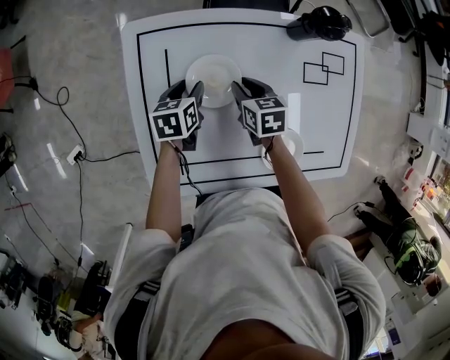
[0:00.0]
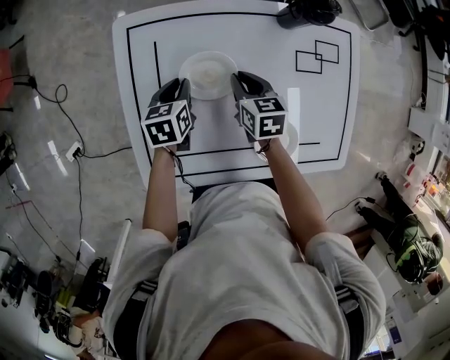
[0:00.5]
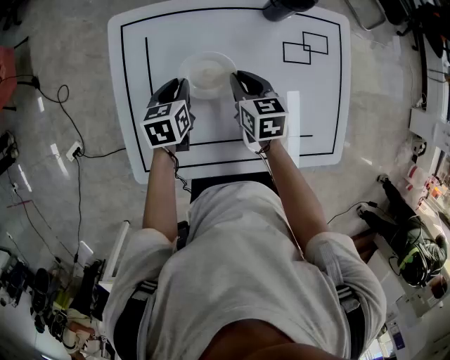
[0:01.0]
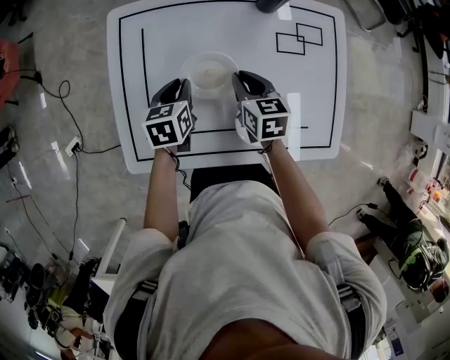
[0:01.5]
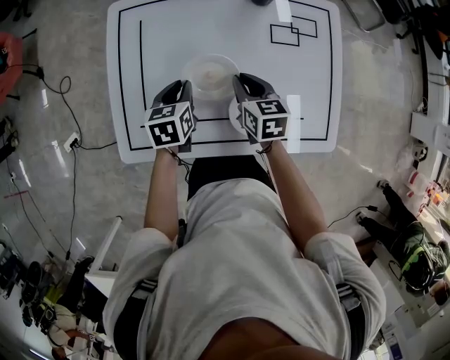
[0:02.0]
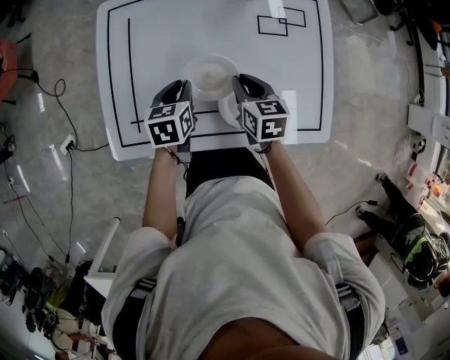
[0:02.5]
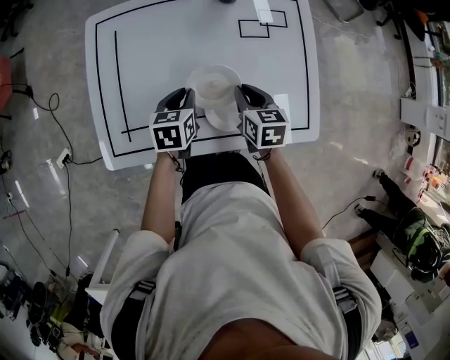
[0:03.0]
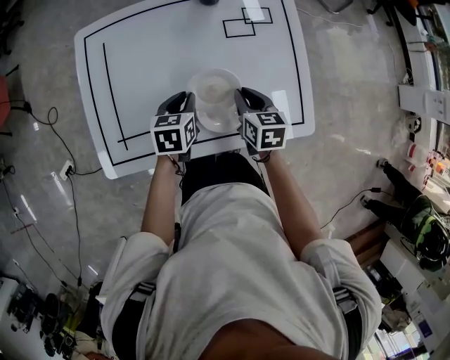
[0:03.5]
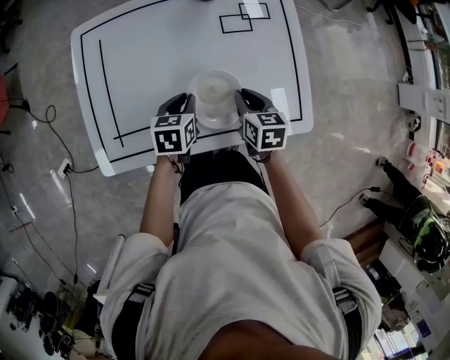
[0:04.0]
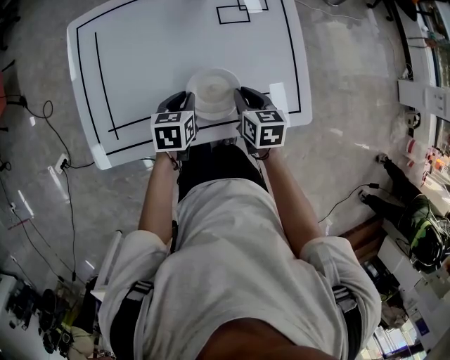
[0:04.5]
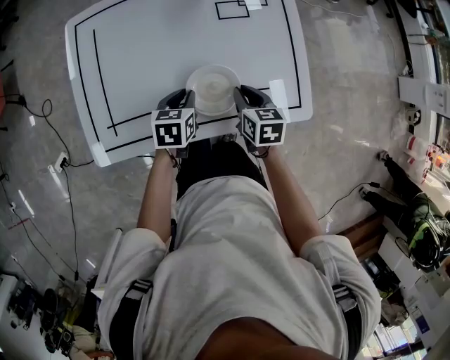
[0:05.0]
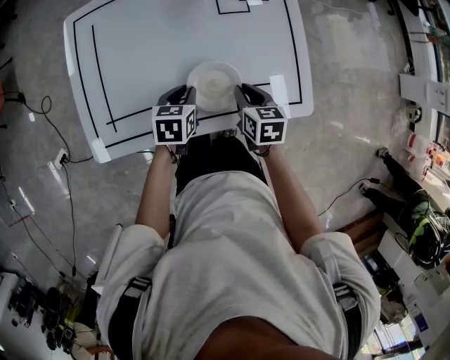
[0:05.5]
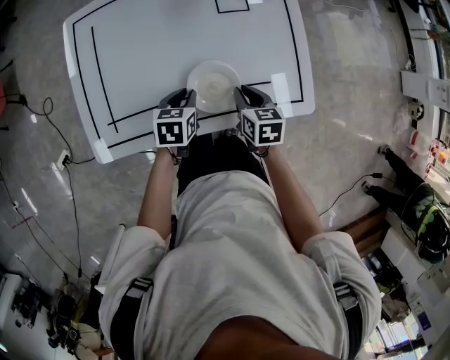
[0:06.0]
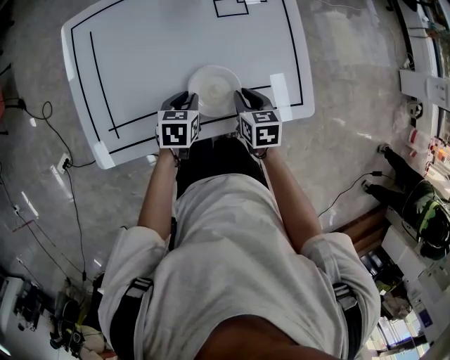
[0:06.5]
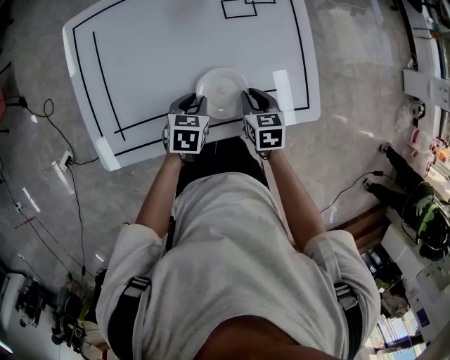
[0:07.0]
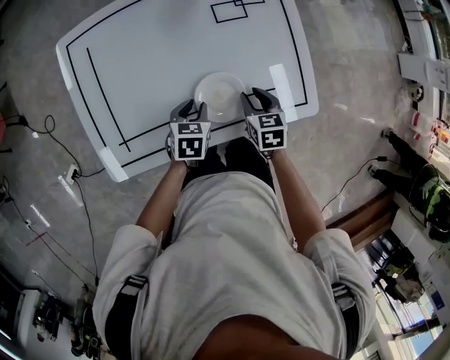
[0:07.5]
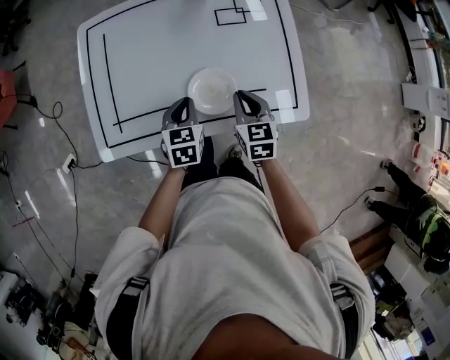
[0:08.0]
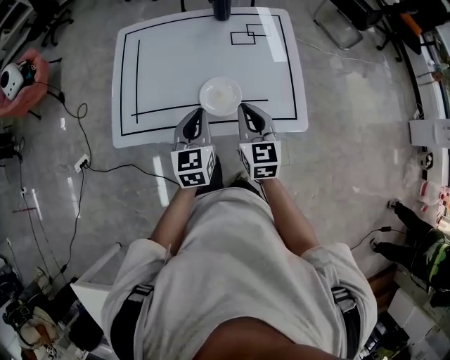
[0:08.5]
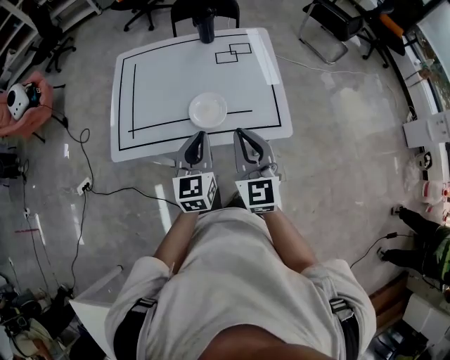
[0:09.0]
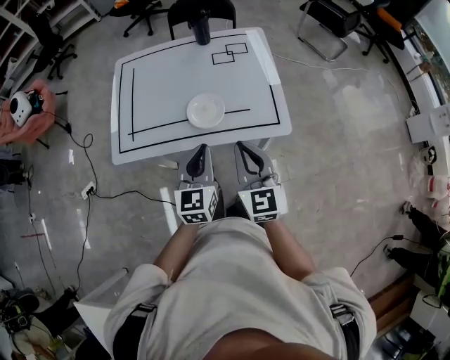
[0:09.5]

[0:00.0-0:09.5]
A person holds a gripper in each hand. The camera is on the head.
0:00.0 to 0:02.0: Both grippers move backward, to the right and upward, approximately 20 cm. The left gripper closes up.
0:02.0 to 0:04.0: The grippers both shift to the right and backward by roughly 15 cm.
0:04.0 to 0:07.5: The grippers make only small movements.
0:07.5 to 0:09.5: The left gripper travels upward, backward and to the right by about 35 cm, tips its fingers upward by approximately 40 degrees, and closes its fingers. Meanwhile the right gripper travels upward and backward by some 35 cm, tilts its fingers some 40 degrees upward, and closes up.

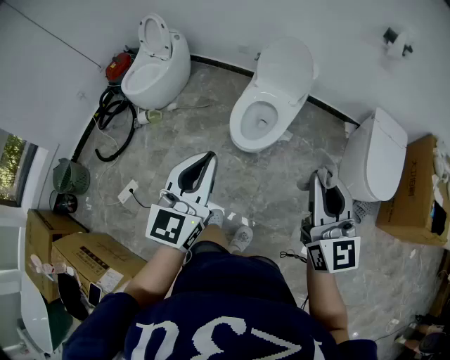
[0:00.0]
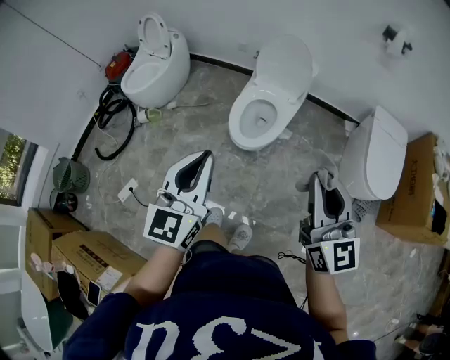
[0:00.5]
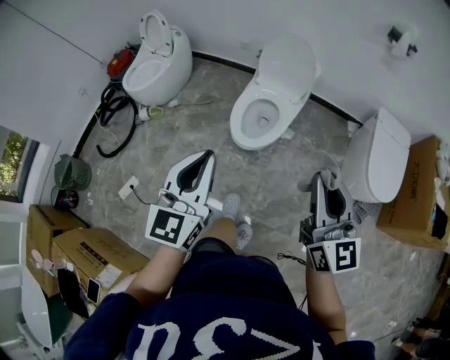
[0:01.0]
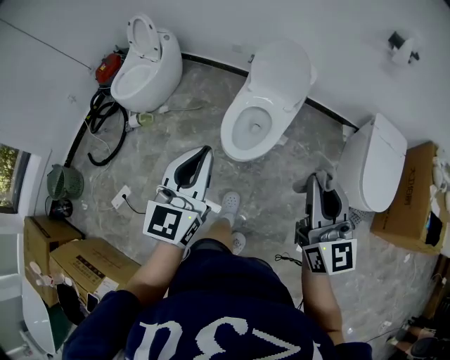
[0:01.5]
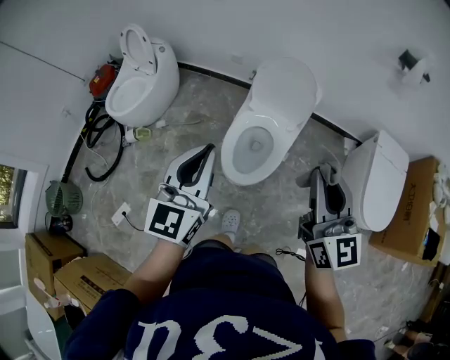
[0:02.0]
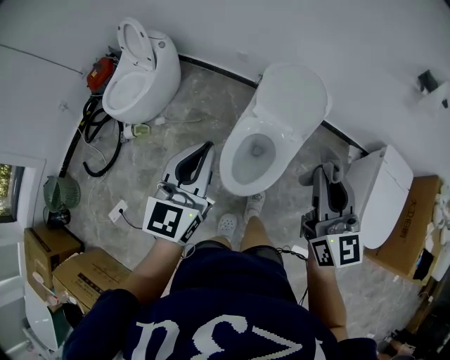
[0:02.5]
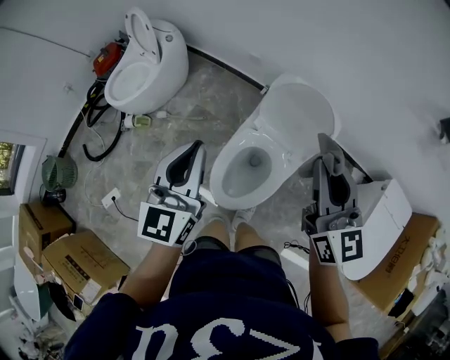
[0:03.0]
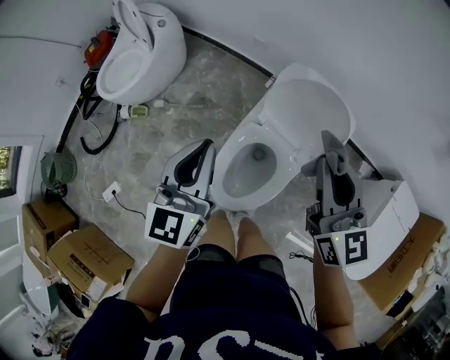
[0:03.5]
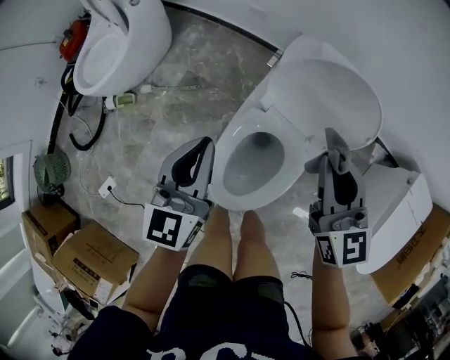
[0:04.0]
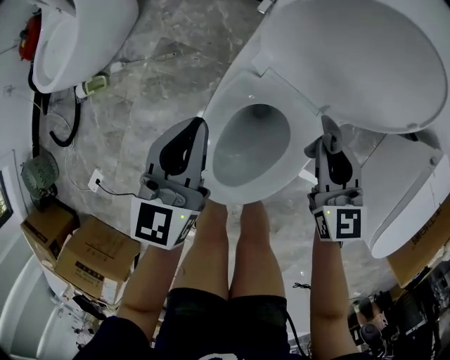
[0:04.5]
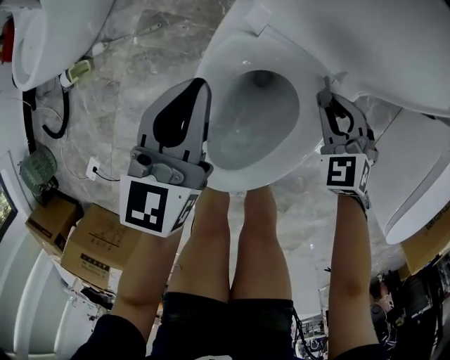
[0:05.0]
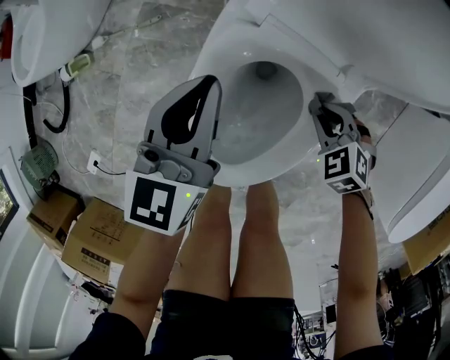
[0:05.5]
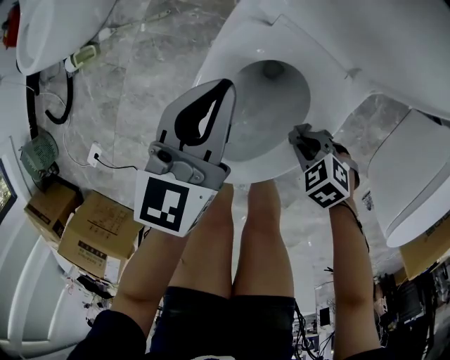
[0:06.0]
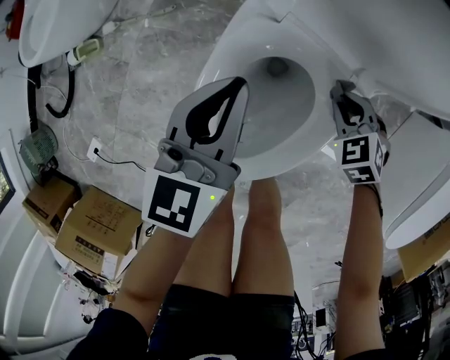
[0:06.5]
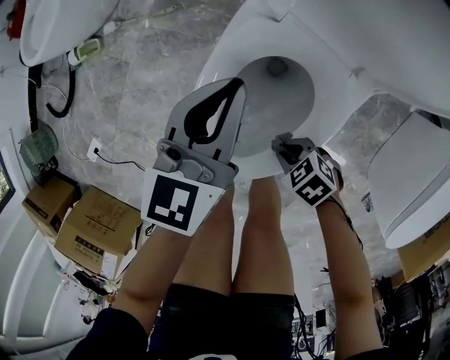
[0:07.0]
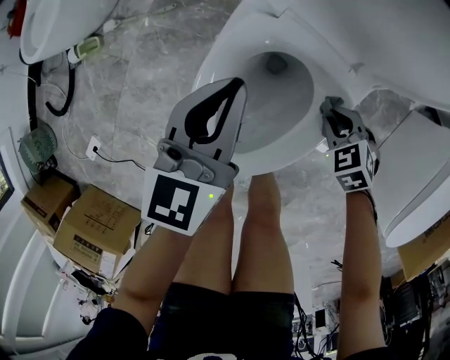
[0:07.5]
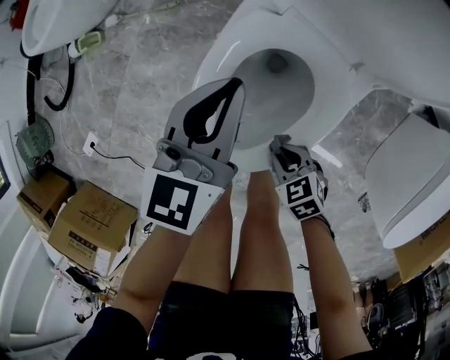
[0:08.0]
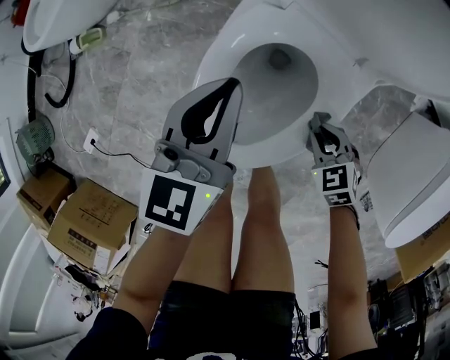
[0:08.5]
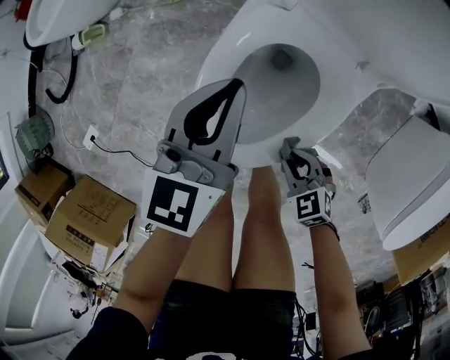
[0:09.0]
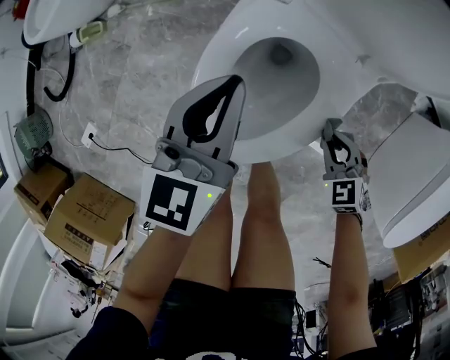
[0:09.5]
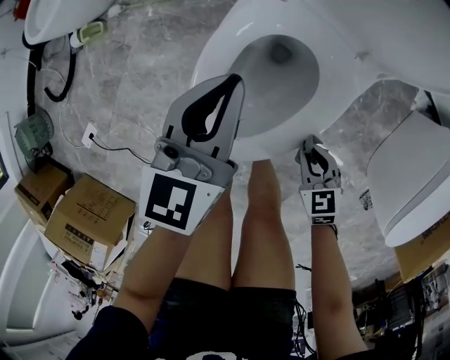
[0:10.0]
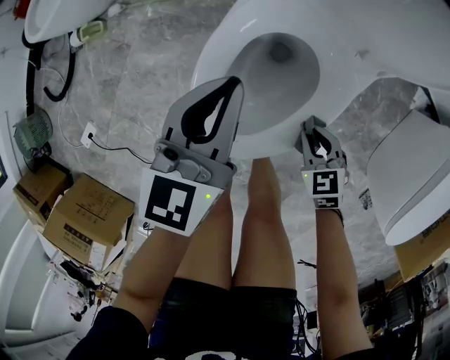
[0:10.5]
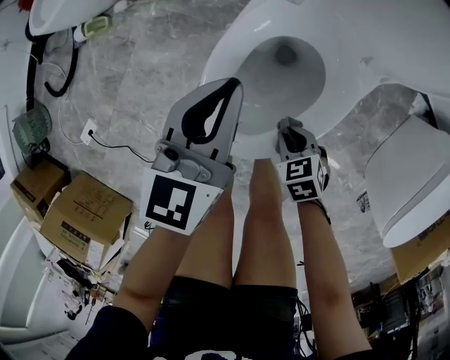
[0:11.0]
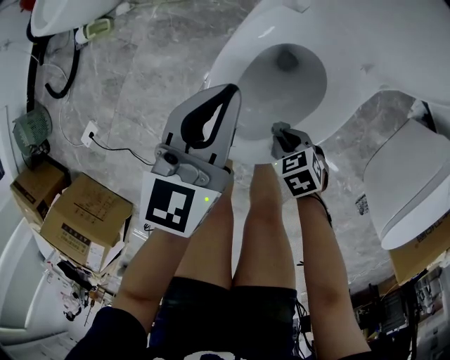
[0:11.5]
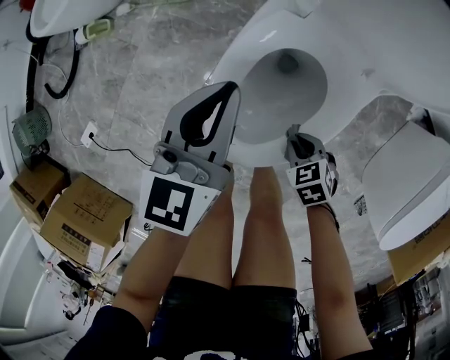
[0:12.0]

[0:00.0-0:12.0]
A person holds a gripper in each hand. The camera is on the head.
0:00.0 to 0:02.0: The grippers both shift forward by approximately 30 cm.
0:02.0 to 0:04.0: Both grippers move forward and downward, roughly 50 cm. The right gripper turns by approximately 20 degrees.
0:04.0 to 0:06.0: The left gripper shifts approximately 25 cm downward. The right gripper heads downward, covering some 50 cm, and tilts its fingers roughly 60 degrees downward.
0:08.0 to 0:10.0: The right gripper swings left and right, roughly 10 cm each way, with 3 reversals.
0:10.0 to 0:12.0: The right gripper goes some 5 cm to the left. Meanwhile the left gripper moves roughly 5 cm.

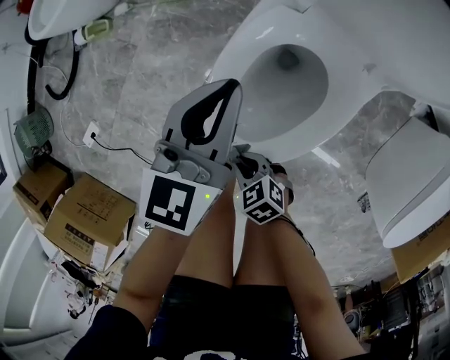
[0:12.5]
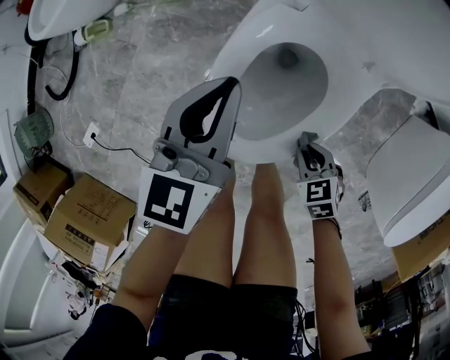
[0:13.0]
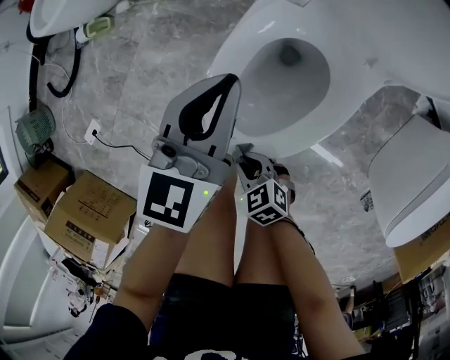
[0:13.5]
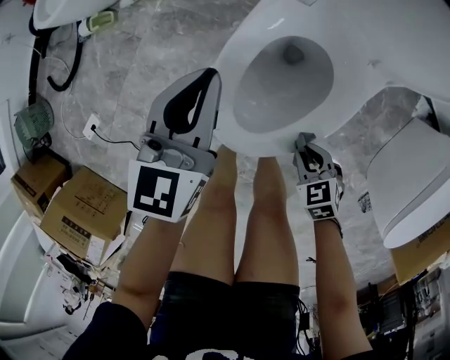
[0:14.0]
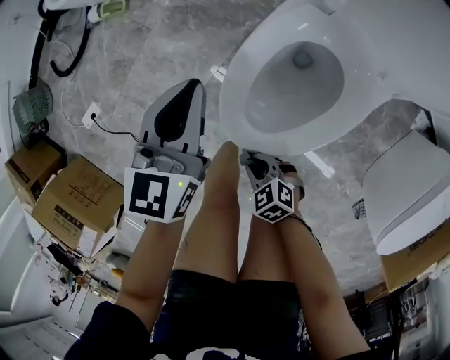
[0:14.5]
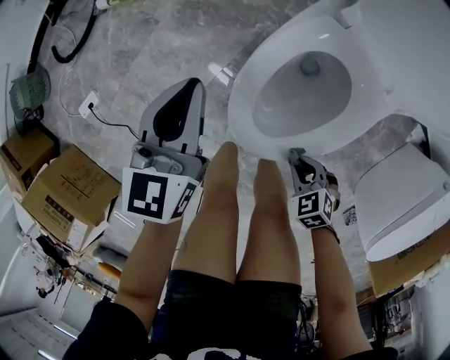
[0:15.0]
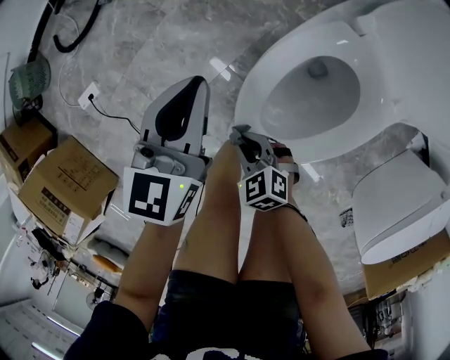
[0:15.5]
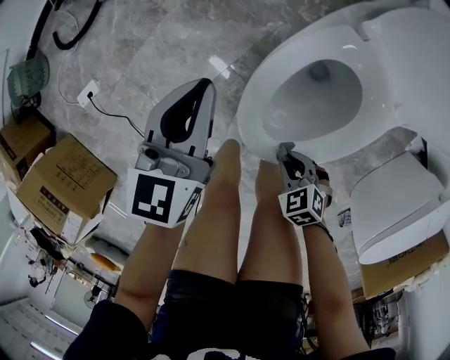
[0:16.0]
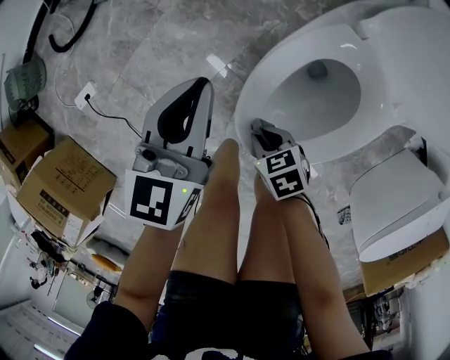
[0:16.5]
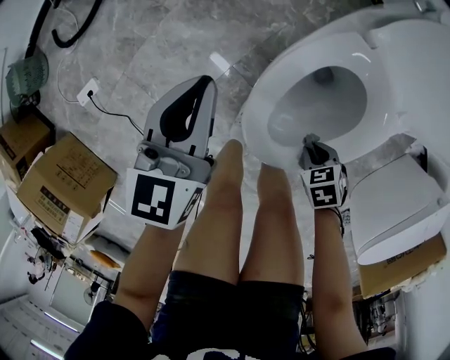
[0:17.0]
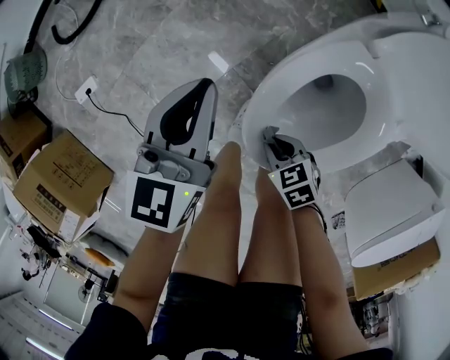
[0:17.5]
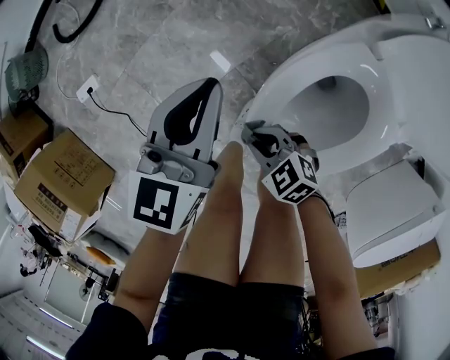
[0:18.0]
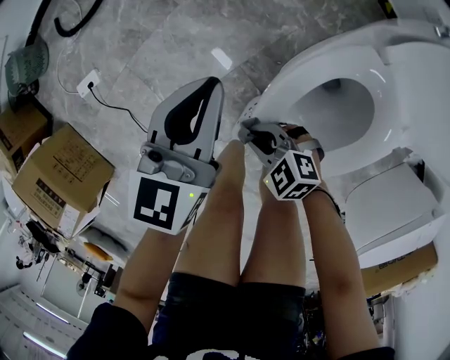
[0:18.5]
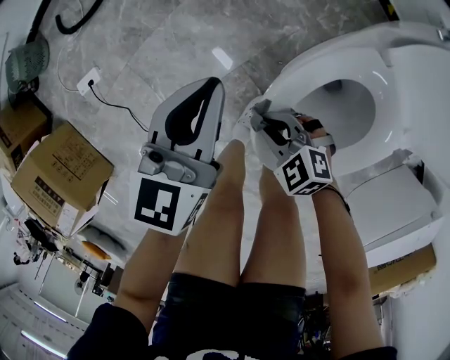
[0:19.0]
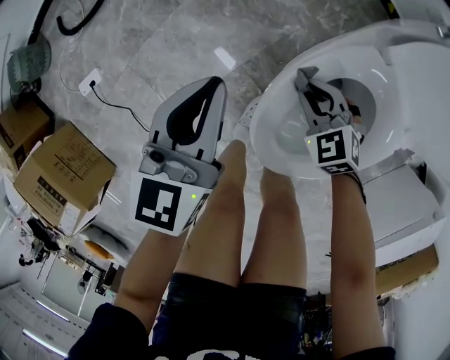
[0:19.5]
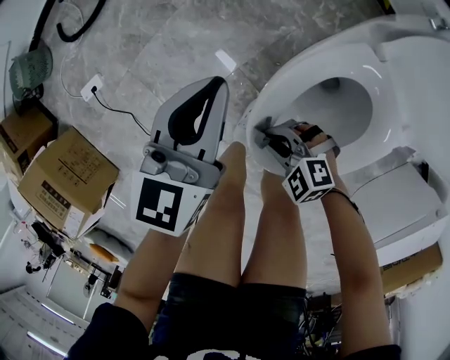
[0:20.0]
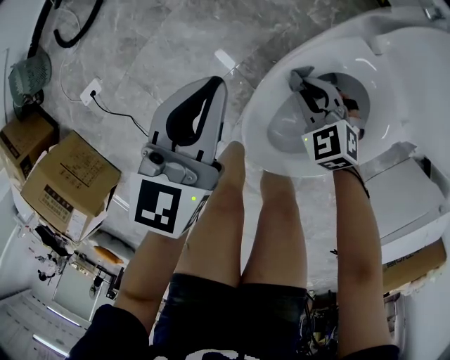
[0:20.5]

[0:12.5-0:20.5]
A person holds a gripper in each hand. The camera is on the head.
0:12.5 to 0:14.5: The left gripper changes place by some 10 cm.
0:14.5 to 0:16.5: The right gripper moves left and right over roughly 15 cm, changing direction 3 times. Meanwhile the left gripper moves roughly 5 cm.
0:16.5 to 0:18.5: The right gripper rolls counterclockwise, seen from behind, by roughly 50 degrees.
0:18.5 to 0:20.5: The left gripper ends up about 5 cm from where it was. The right gripper swings left and right, approximately 20 cm each way, with 2 reversals, and turns by roughly 30 degrees.
